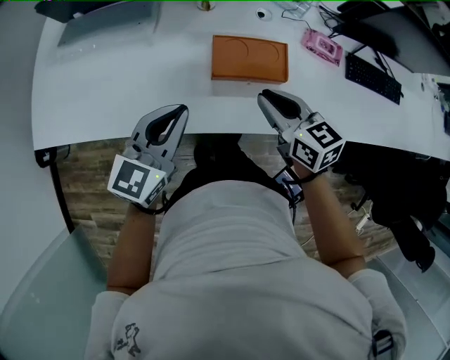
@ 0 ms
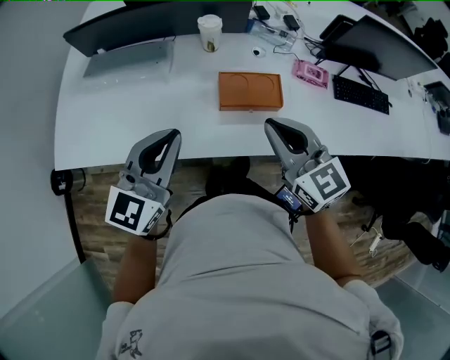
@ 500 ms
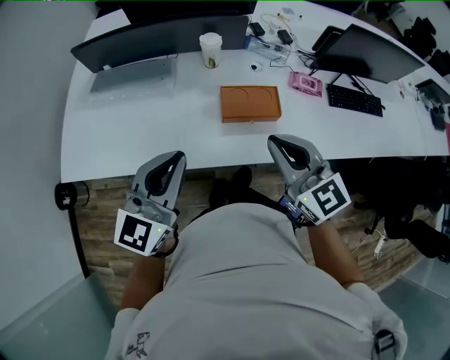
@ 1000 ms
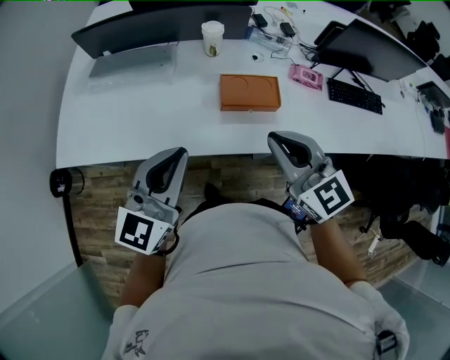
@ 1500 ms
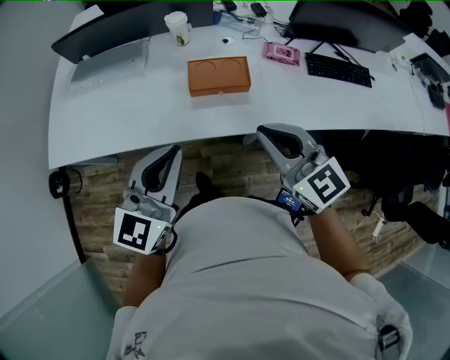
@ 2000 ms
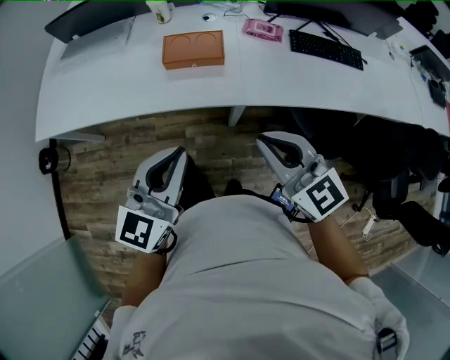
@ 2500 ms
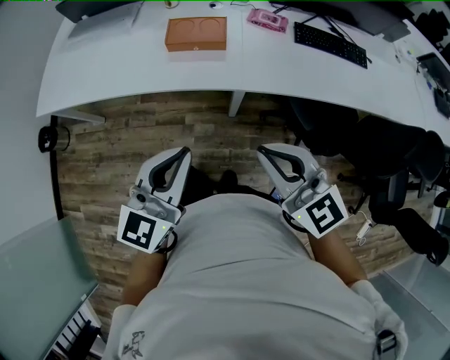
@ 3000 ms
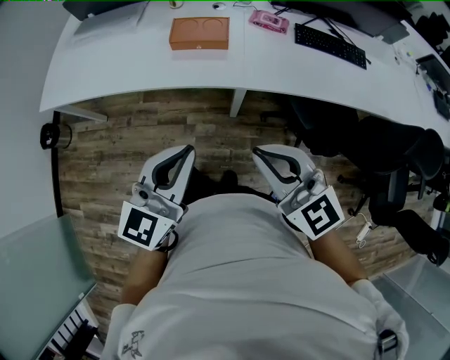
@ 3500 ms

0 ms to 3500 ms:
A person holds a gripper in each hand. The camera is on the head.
0 ms to 2000 ms: The grippers both shift backward and upward by roughly 25 cm. The right gripper rotates about 30 degrees.
2000 ms to 3500 ms: The two grippers go some 25 cm backward and to the right.

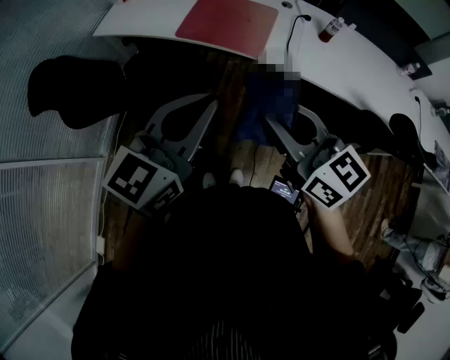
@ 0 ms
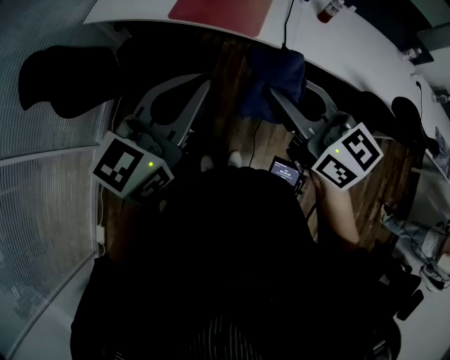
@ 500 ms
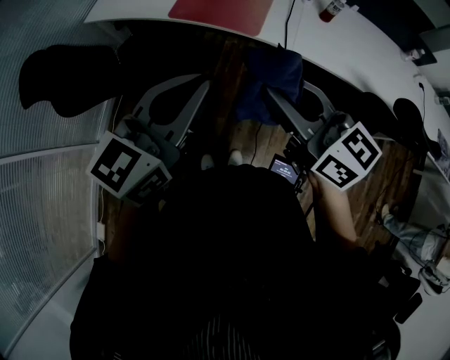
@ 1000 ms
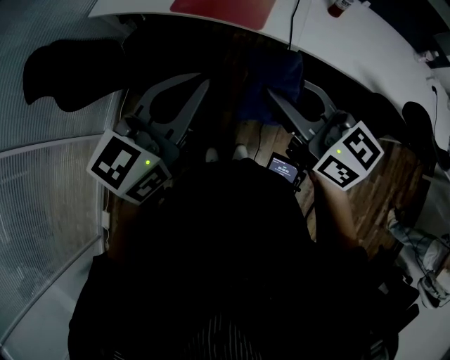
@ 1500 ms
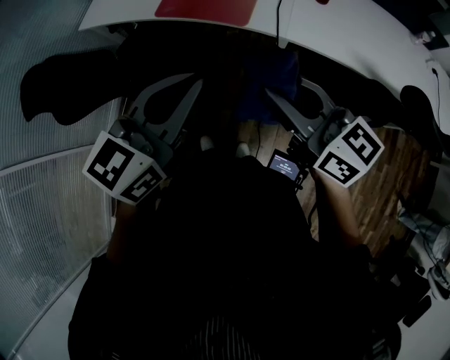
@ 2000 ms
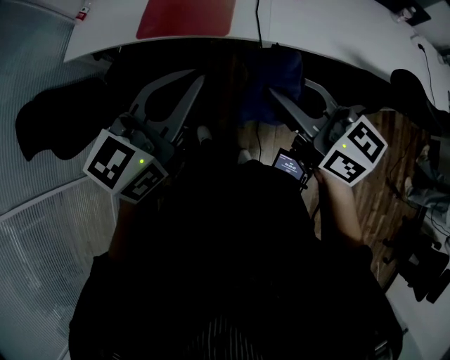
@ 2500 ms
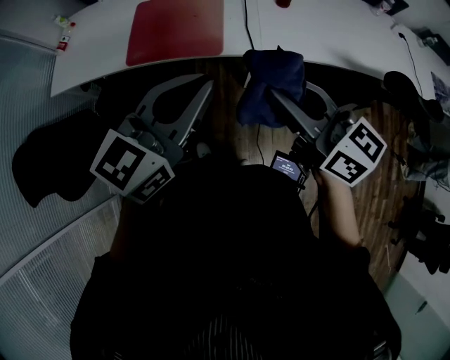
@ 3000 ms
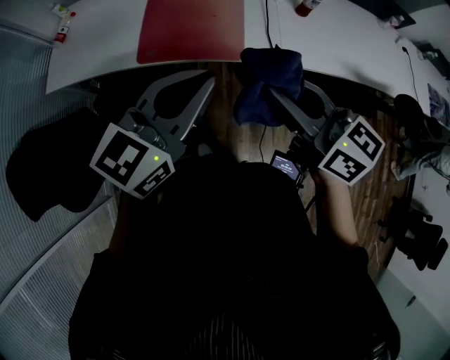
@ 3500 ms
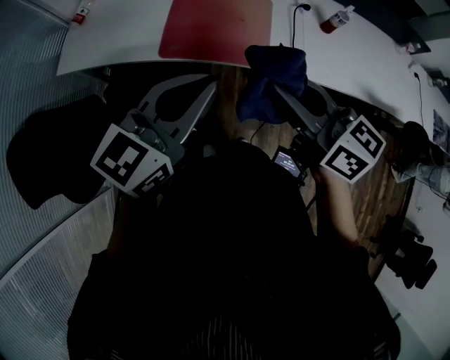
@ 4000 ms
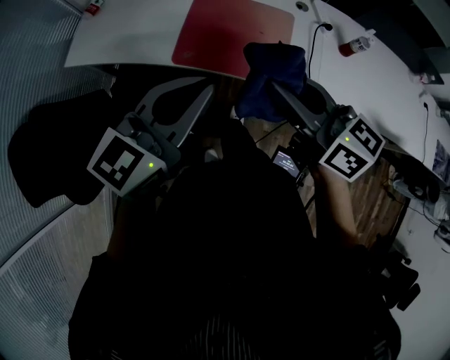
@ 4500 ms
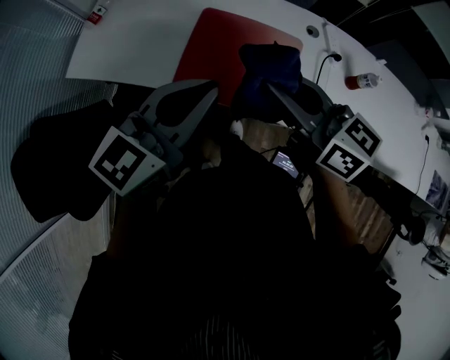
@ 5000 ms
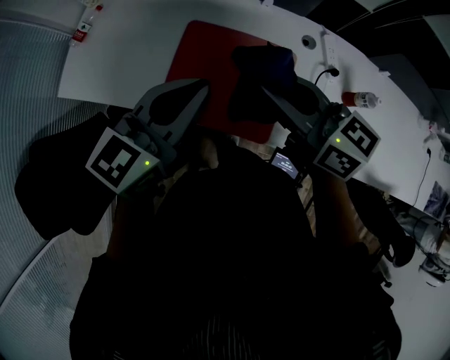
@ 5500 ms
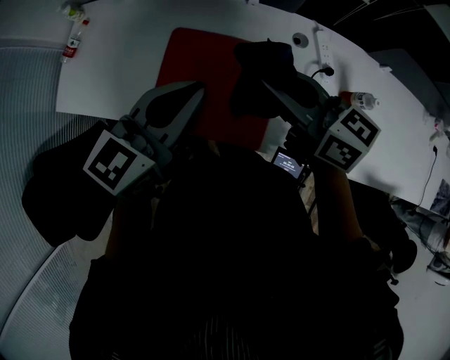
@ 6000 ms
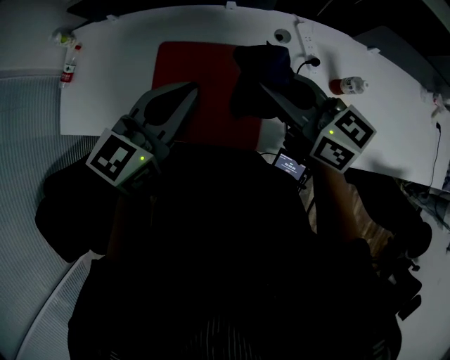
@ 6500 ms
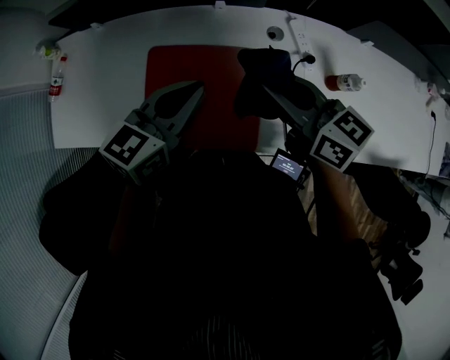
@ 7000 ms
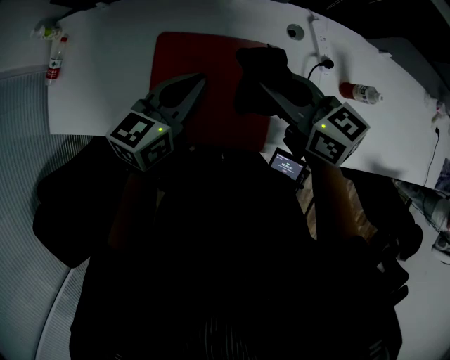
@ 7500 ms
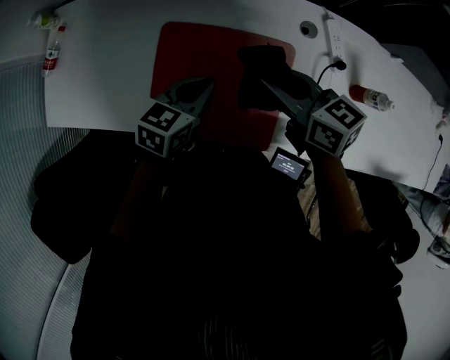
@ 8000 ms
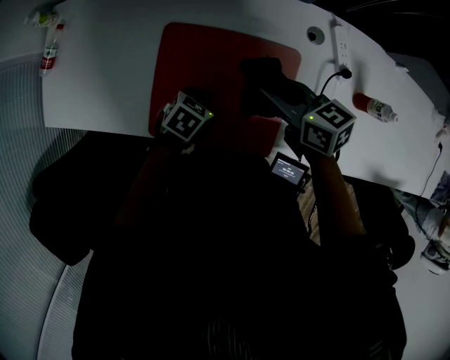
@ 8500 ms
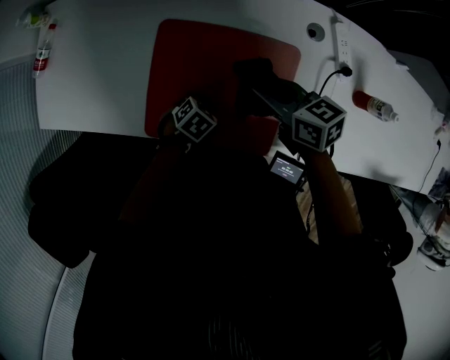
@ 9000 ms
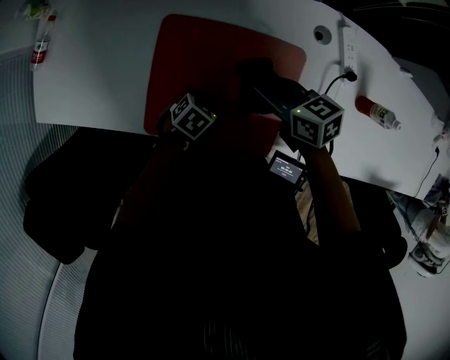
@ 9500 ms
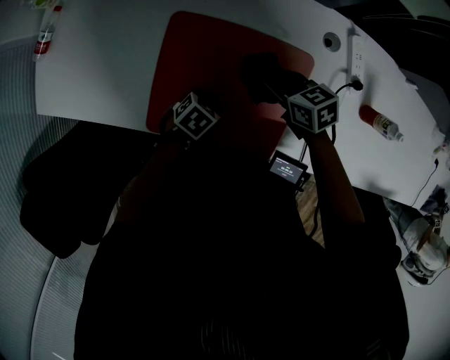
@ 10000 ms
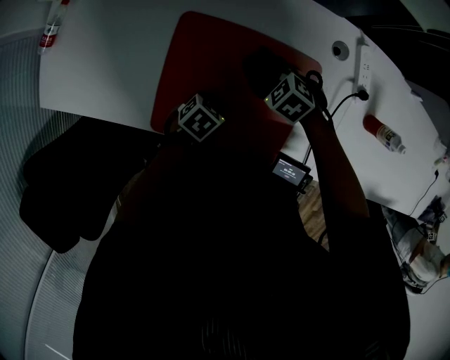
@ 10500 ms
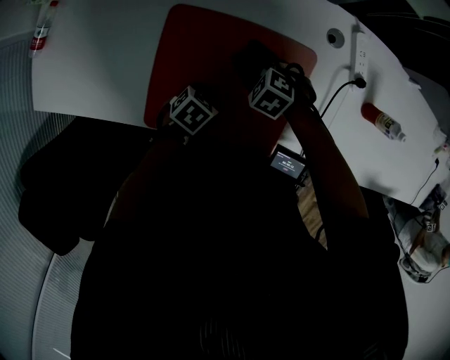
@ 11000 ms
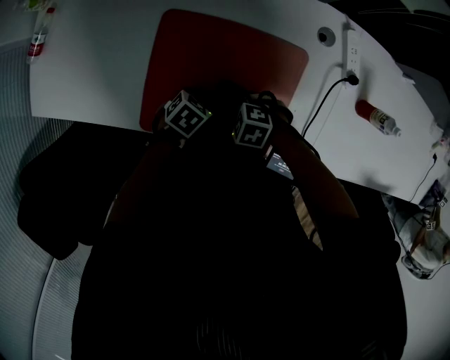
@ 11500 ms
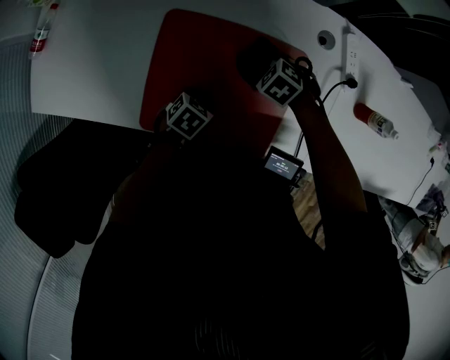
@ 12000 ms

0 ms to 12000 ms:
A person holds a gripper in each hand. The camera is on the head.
0 ms to 2000 ms: The grippers both shift to the right by approximately 10 cm.
2000 ms to 4000 ms: The two grippers go roughly 25 cm forward and to the left.
4000 ms to 6000 ms: The two grippers go about 35 cm forward.
6000 ms to 8000 ms: The left gripper shifts about 20 cm downward, and changes its angle by roughly 20 degrees, while the right gripper travels downward and forward by roughly 15 cm.
8000 ms to 10000 ms: Both grippers move downward, roughly 20 cm. The left gripper points its fingers about 30 degrees further downward. The right gripper rotates roughly 20 degrees.
10000 ms to 12000 ms: The right gripper moves downward, approximately 10 cm, and angles its fingers downward, by approximately 30 degrees.

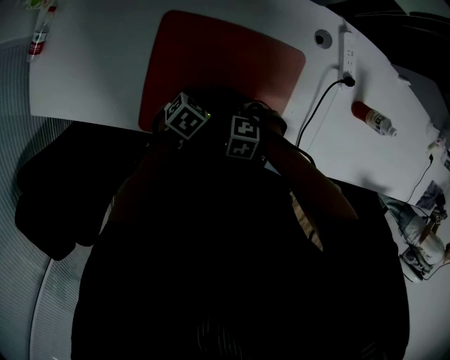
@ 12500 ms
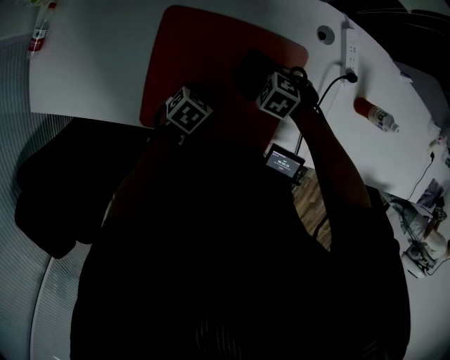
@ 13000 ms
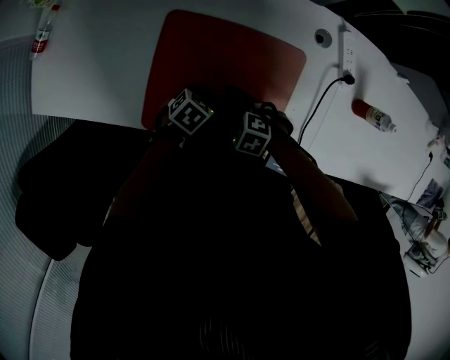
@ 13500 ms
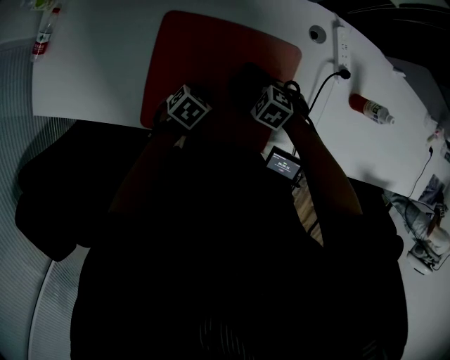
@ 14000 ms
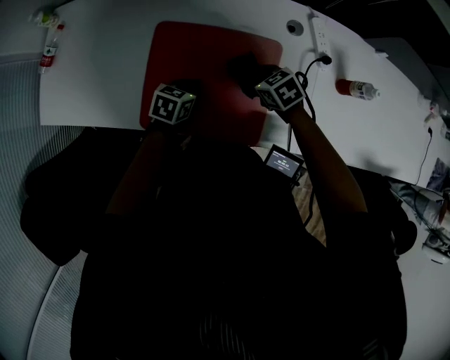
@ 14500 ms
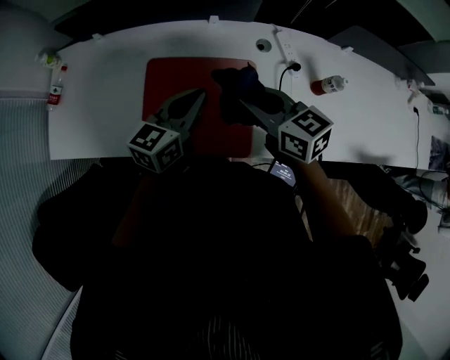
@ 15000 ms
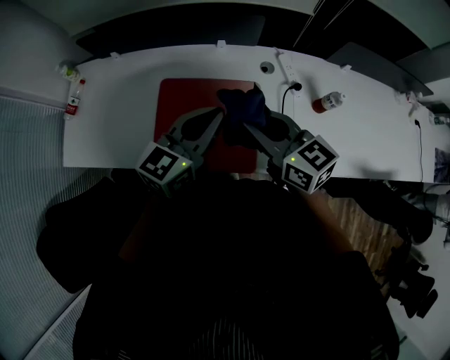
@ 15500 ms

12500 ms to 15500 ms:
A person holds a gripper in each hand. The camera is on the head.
12500 ms to 14000 ms: The right gripper moves about 10 cm.
14000 ms to 15500 ms: The grippers both shift upward by some 40 cm. The left gripper tilts its fingers roughly 60 degrees upward. The right gripper tips its fingers upward by approximately 60 degrees.

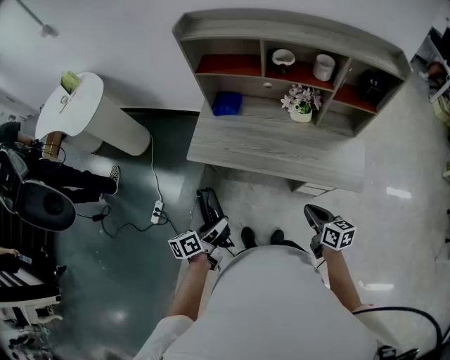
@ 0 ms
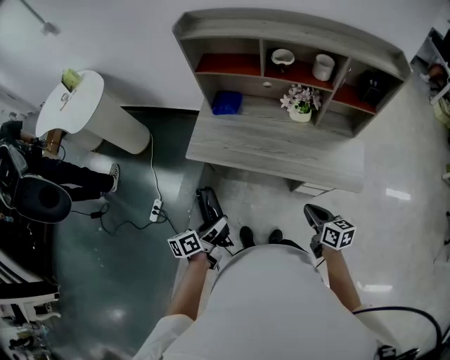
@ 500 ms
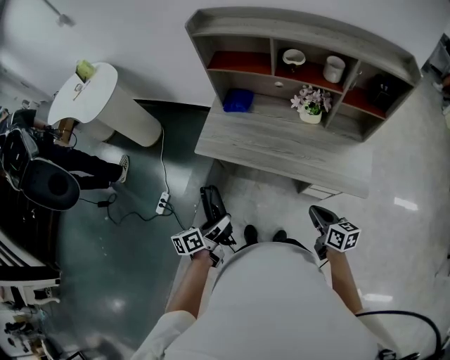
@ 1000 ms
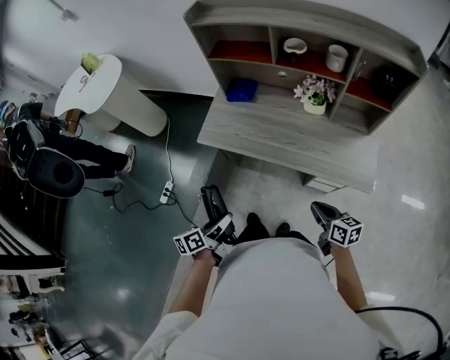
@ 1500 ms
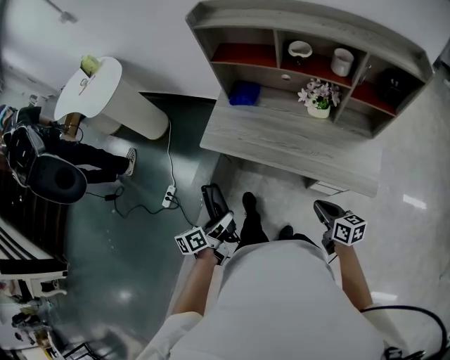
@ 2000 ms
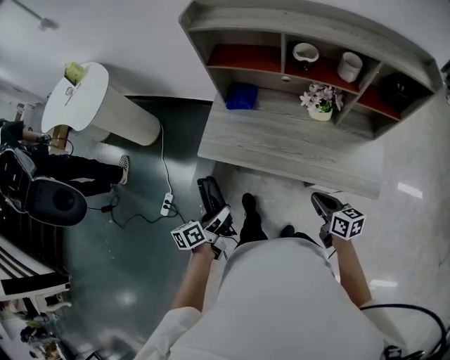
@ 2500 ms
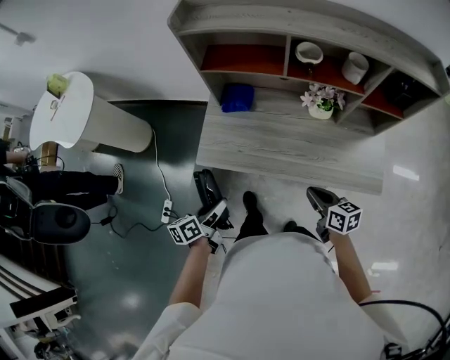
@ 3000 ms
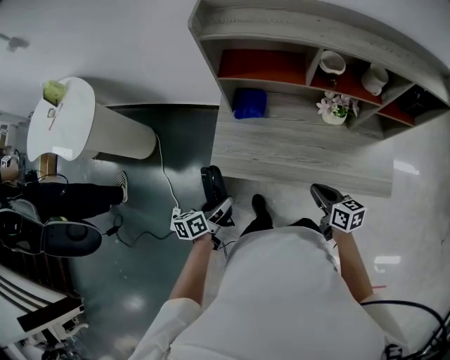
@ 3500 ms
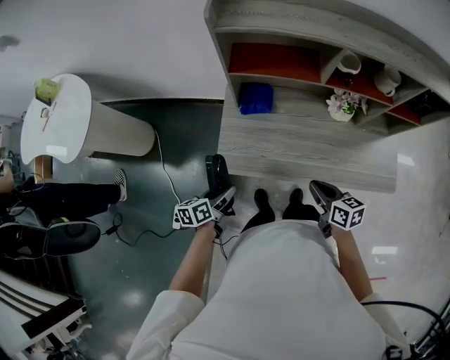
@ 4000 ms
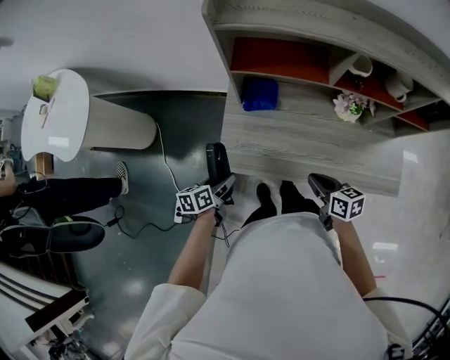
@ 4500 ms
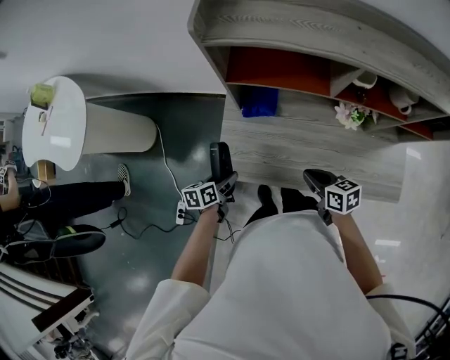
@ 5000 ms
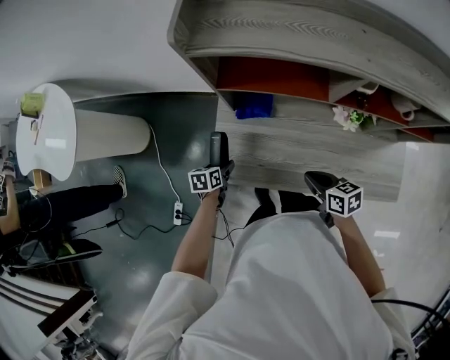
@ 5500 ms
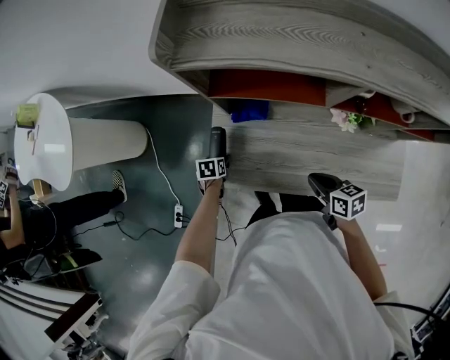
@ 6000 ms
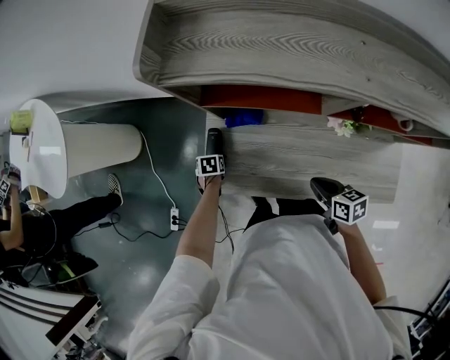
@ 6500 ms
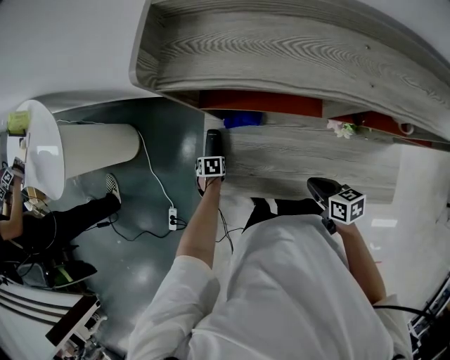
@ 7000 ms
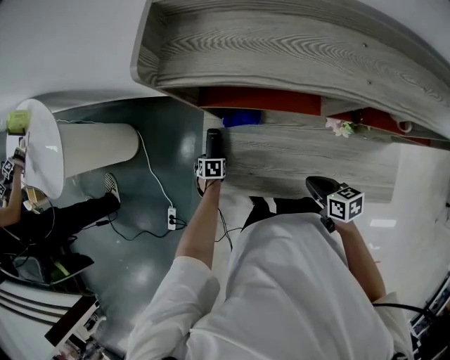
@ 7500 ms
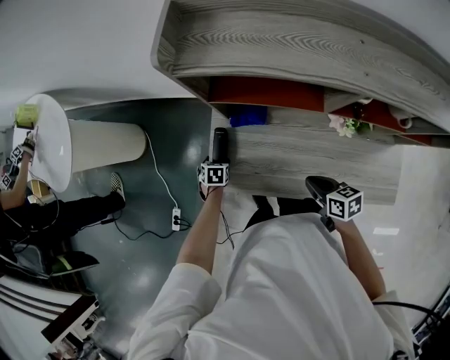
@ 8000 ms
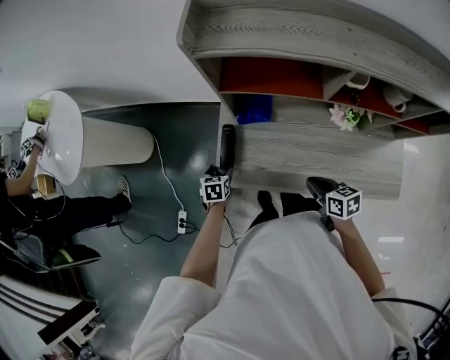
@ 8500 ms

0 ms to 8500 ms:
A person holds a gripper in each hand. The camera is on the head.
0 ms to 2000 ms: The grippers stay close to where they were, moving slightly.
2000 ms to 4000 ms: The right gripper shifts approximately 30 cm to the left and forward. Meanwhile the left gripper heads forward and to the left, covering approximately 35 cm, and rotates some 20 degrees.
4000 ms to 6500 ms: The right gripper ends up about 15 cm from where it was. Meanwhile the left gripper moves downward, roughly 20 cm, and tips its fingers downward by roughly 40 degrees.
6500 ms to 8500 ms: The left gripper shifts approximately 10 cm upward. The right gripper moves approximately 5 cm.
